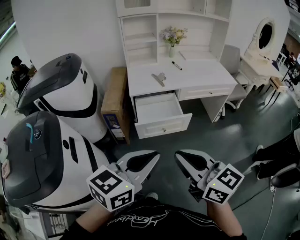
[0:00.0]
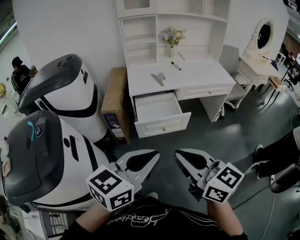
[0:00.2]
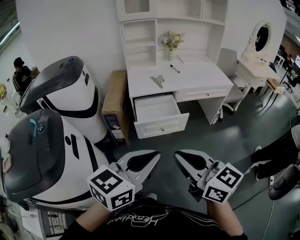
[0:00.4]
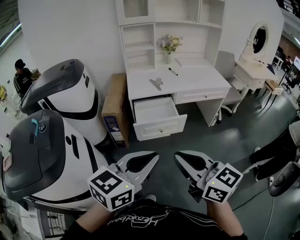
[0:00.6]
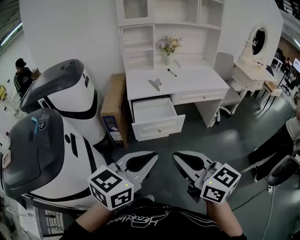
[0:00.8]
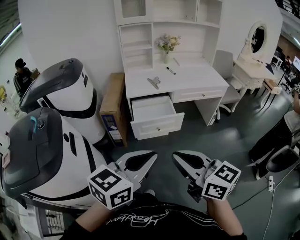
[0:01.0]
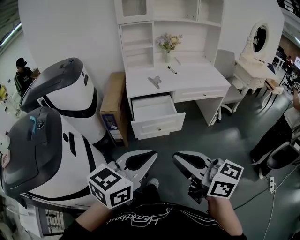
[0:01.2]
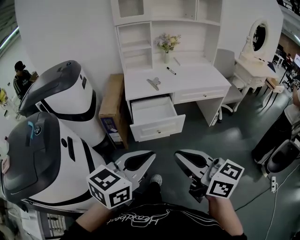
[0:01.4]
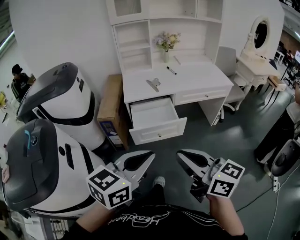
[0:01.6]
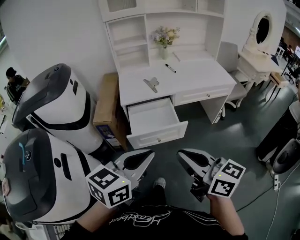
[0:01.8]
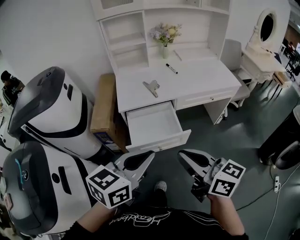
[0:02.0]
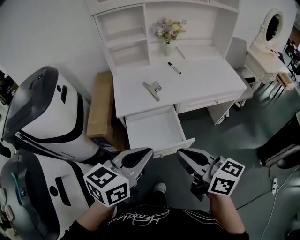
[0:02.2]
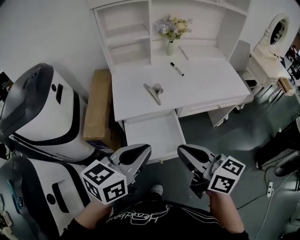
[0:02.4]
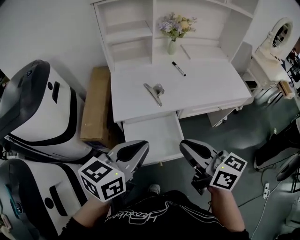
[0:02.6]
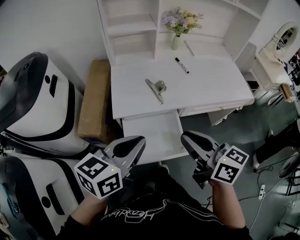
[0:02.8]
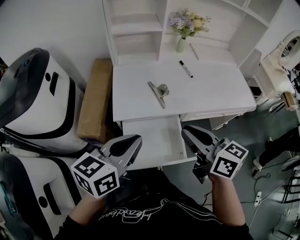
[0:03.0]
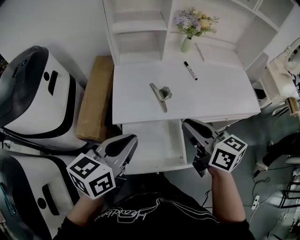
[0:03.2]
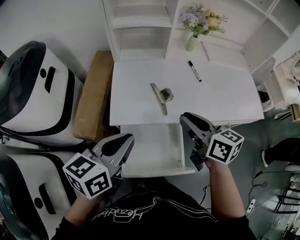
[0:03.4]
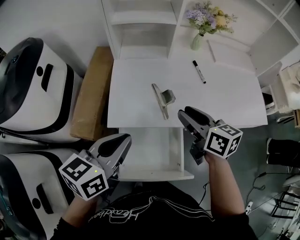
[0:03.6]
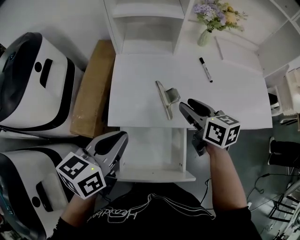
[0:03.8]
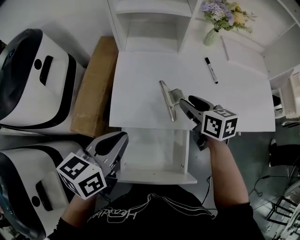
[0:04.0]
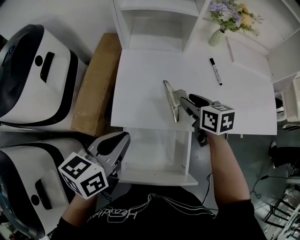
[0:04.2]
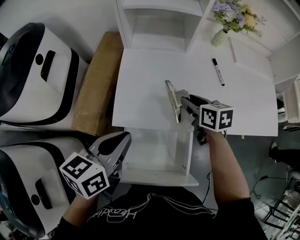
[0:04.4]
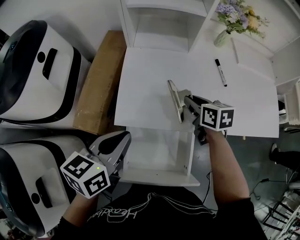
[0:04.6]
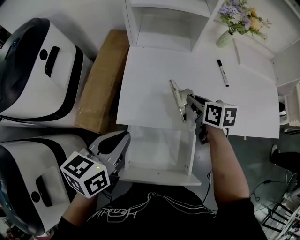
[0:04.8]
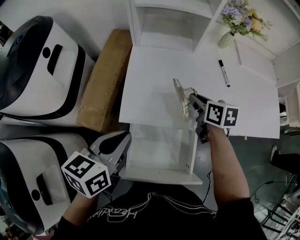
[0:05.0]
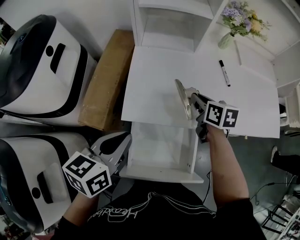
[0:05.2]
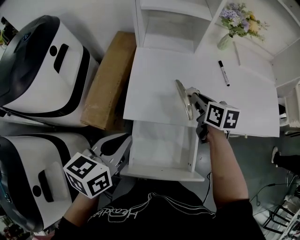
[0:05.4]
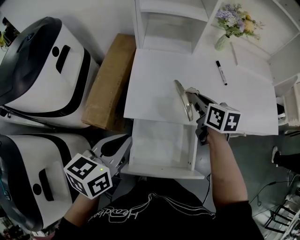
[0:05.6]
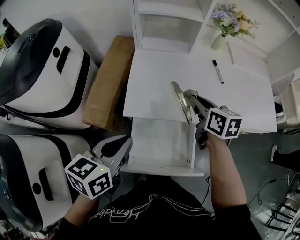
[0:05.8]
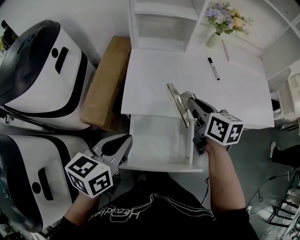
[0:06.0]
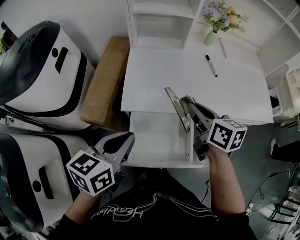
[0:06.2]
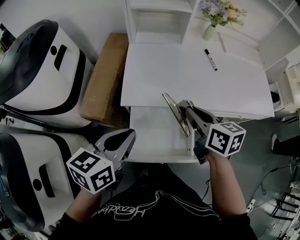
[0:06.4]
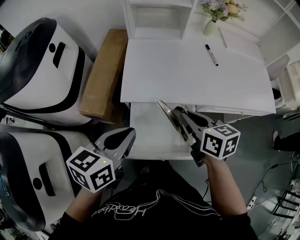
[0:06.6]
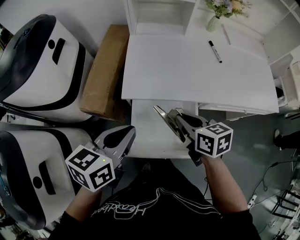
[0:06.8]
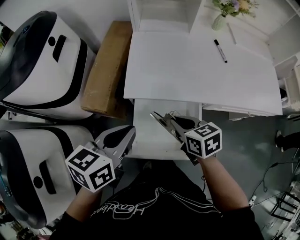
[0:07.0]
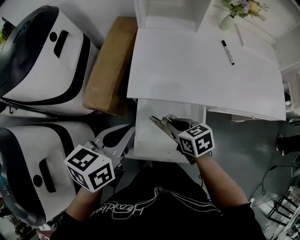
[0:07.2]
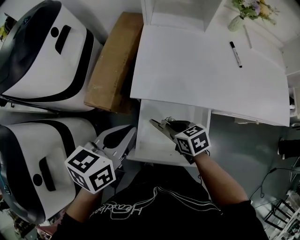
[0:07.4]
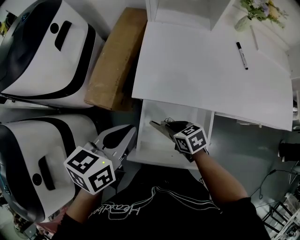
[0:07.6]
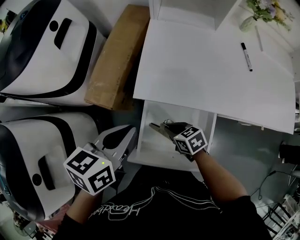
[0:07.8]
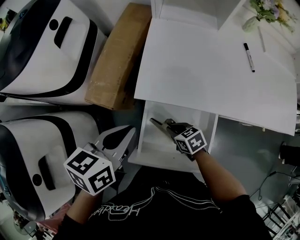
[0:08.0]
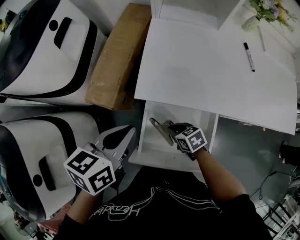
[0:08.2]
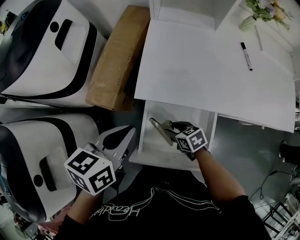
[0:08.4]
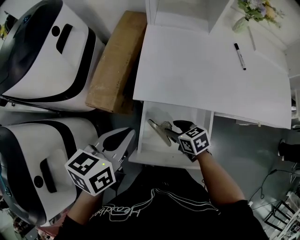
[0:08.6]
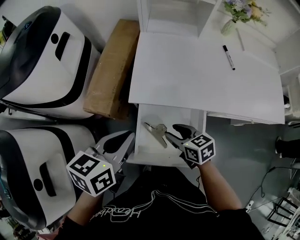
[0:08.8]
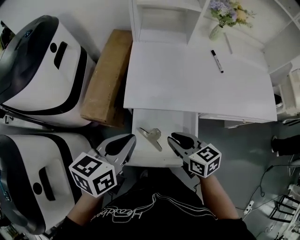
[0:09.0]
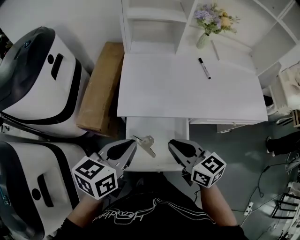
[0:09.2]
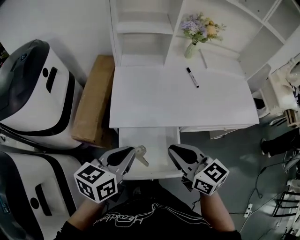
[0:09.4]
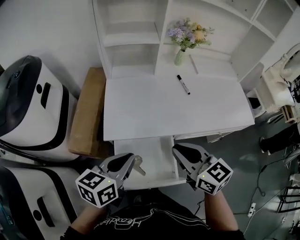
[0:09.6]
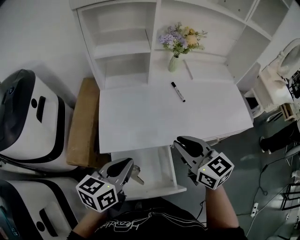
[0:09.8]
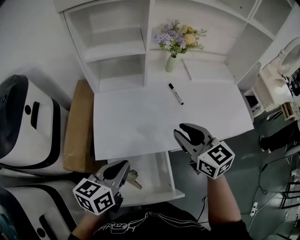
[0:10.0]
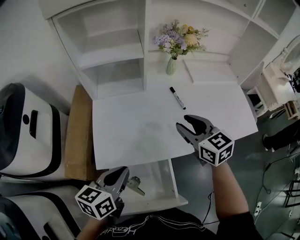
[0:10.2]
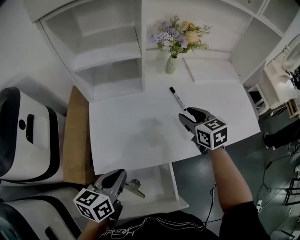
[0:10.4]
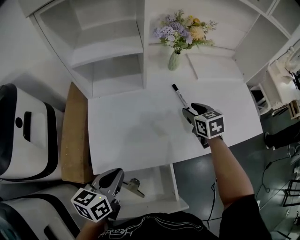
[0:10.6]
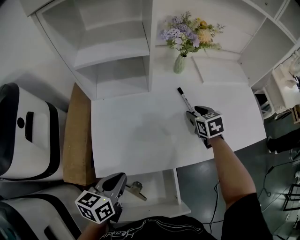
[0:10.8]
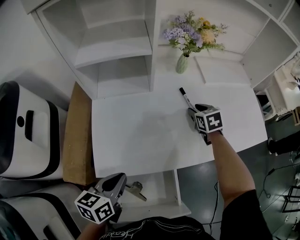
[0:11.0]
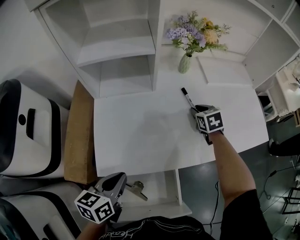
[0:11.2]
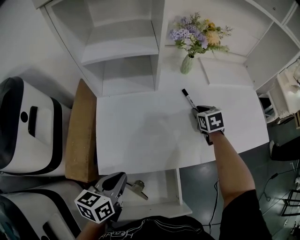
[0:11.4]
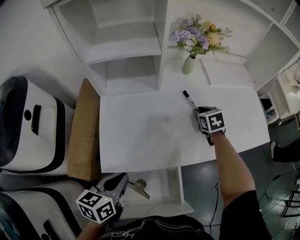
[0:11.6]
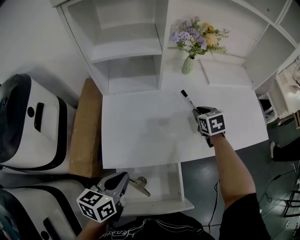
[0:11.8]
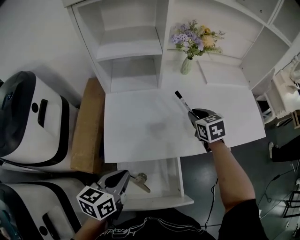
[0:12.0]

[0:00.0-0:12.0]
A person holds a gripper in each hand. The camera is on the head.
0:00.0 to 0:01.6: The left gripper goes backward and returns, roughly 5 cm each way. Meanwhile the right gripper reaches approximately 5 cm backward, then returns.
0:01.6 to 0:03.0: Both grippers travel together forward, some 40 cm.
0:03.0 to 0:04.4: The right gripper moves forward and downward, approximately 35 cm, changes its angle by about 30 degrees, and opens. The left gripper shifts about 15 cm forward and downward.
0:04.4 to 0:06.0: The left gripper goes about 10 cm backward. The right gripper travels upward and backward by roughly 15 cm, and closes.
0:06.0 to 0:07.6: The left gripper is displaced downward by some 5 cm. Meanwhile the right gripper shifts some 30 cm downward, to the left and backward, and turns by roughly 40 degrees.
0:07.6 to 0:09.0: The right gripper is displaced upward by about 15 cm, changes its angle by roughly 30 degrees, and opens and closes again.
0:09.0 to 0:10.4: The right gripper moves forward and to the right, approximately 35 cm, and swivels about 30 degrees; the left gripper shifts approximately 15 cm forward and to the right.
0:10.4 to 0:12.0: The right gripper reaches roughly 10 cm downward, then returns; the left gripper shifts roughly 5 cm backward.

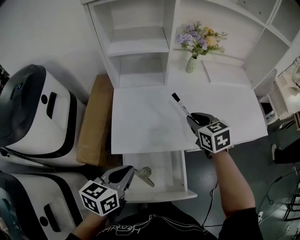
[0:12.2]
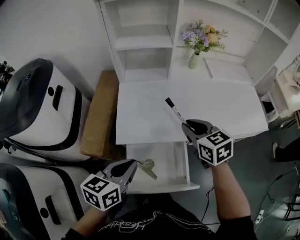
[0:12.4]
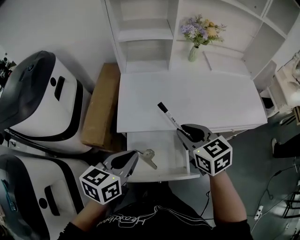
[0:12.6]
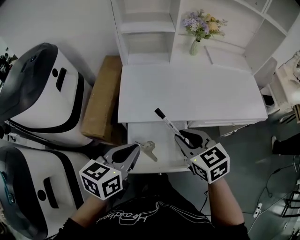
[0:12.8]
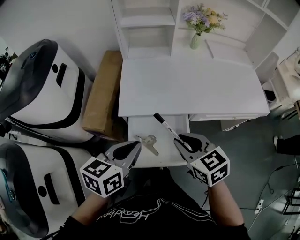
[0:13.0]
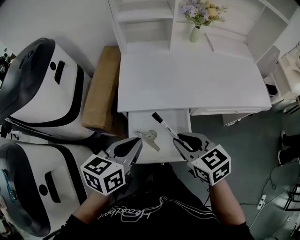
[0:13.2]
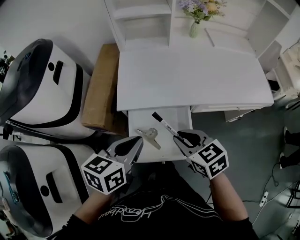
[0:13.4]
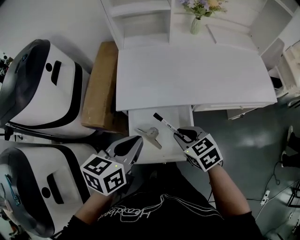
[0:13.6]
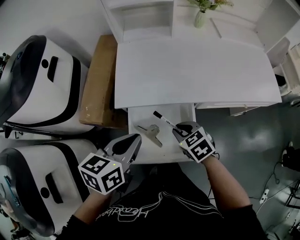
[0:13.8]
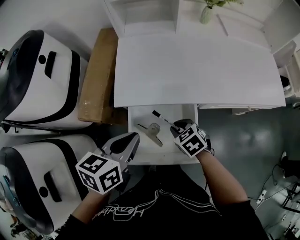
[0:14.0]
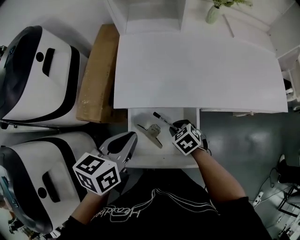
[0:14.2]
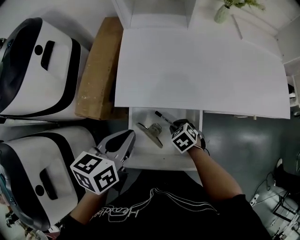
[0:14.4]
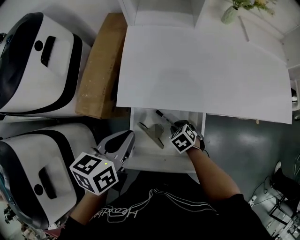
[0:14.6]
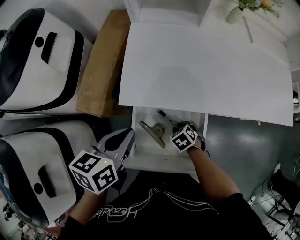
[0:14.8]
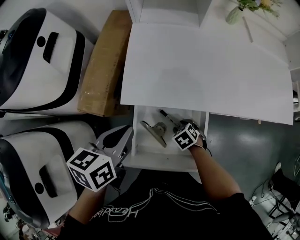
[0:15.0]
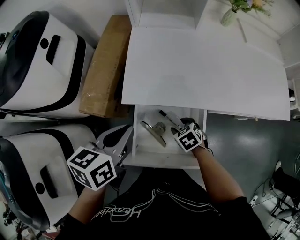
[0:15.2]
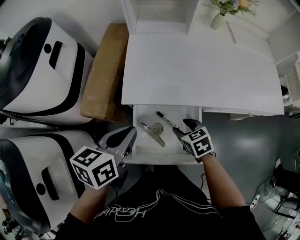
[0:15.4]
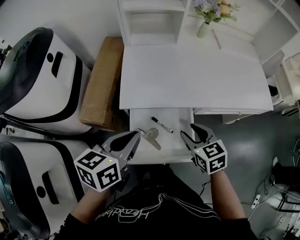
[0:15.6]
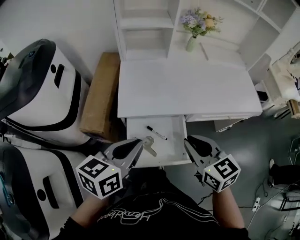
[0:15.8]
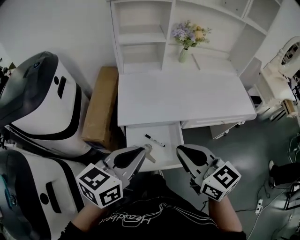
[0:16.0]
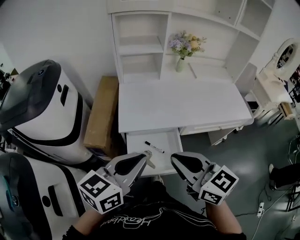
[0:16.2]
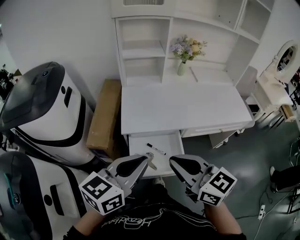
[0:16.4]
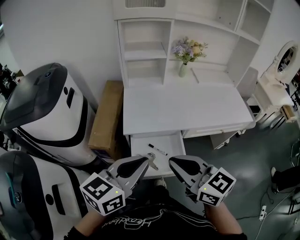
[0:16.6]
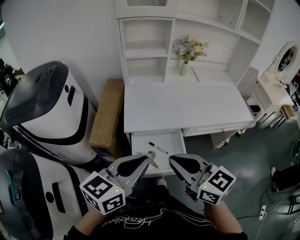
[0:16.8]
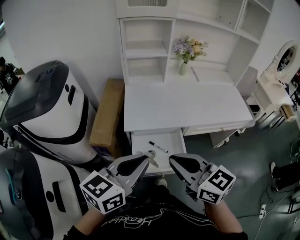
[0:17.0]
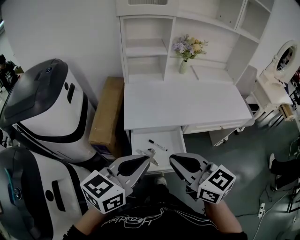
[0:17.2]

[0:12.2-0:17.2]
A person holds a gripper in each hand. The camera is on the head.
0:12.2 to 0:13.8: The right gripper moves backward, downward and to the left, about 30 cm, and turns by about 20 degrees. Meanwhile the left gripper travels backward by approximately 5 cm.
0:13.8 to 0:15.6: The right gripper reaches approximately 20 cm downward, then returns, and opens up. The left gripper reaches roughly 5 cm downward, then returns.
0:15.6 to 0:17.2: Both grippers travel together upward and backward, about 25 cm. The right gripper swivels approximately 30 degrees, and closes its fingers; the left gripper changes its angle by about 20 degrees.

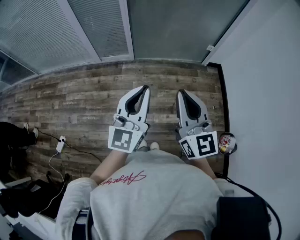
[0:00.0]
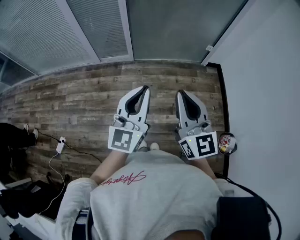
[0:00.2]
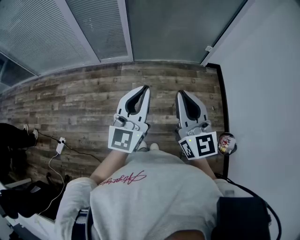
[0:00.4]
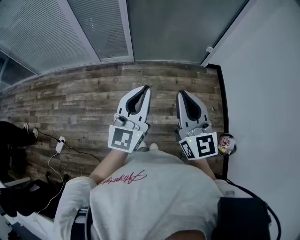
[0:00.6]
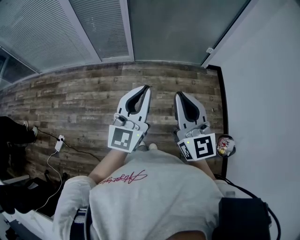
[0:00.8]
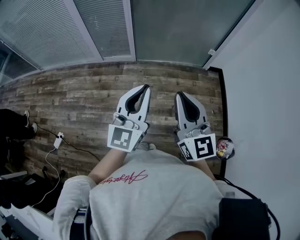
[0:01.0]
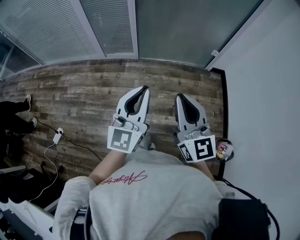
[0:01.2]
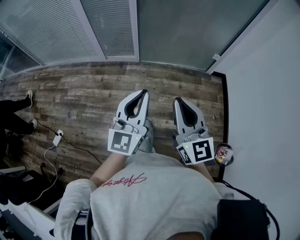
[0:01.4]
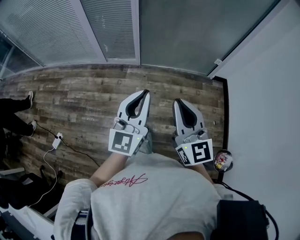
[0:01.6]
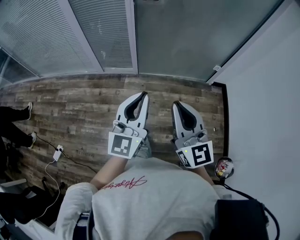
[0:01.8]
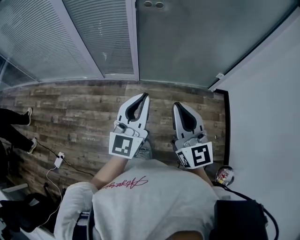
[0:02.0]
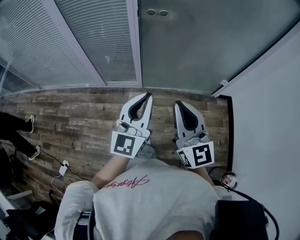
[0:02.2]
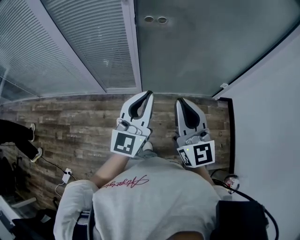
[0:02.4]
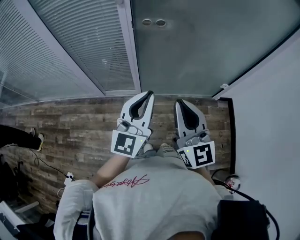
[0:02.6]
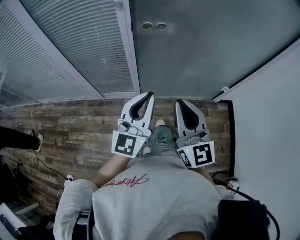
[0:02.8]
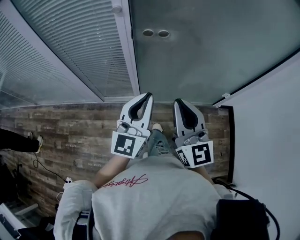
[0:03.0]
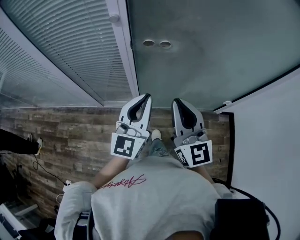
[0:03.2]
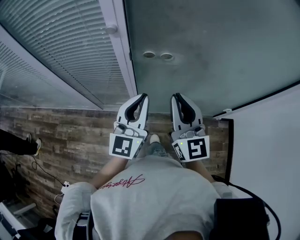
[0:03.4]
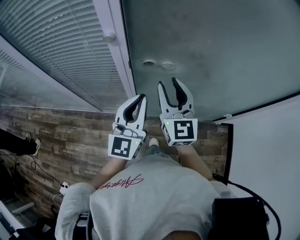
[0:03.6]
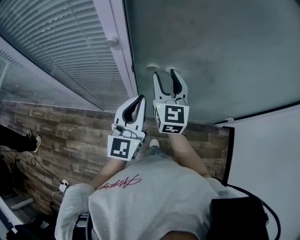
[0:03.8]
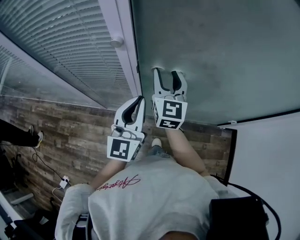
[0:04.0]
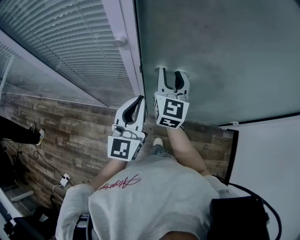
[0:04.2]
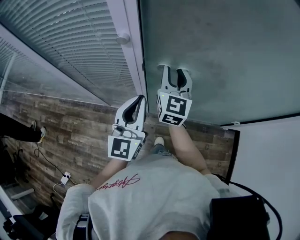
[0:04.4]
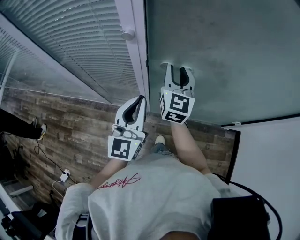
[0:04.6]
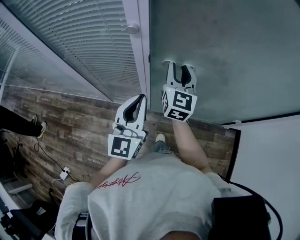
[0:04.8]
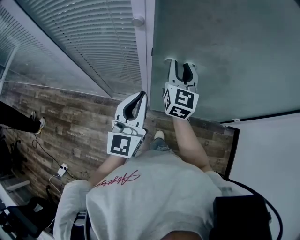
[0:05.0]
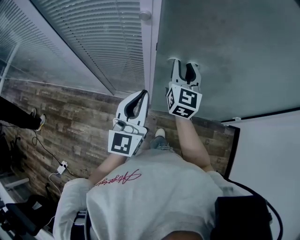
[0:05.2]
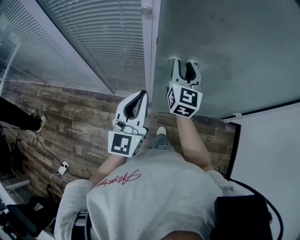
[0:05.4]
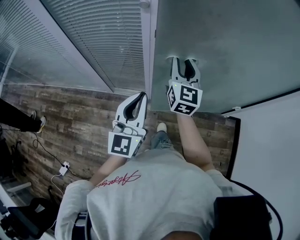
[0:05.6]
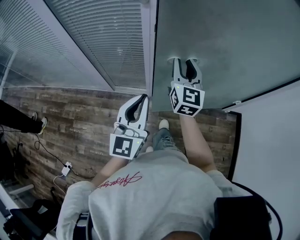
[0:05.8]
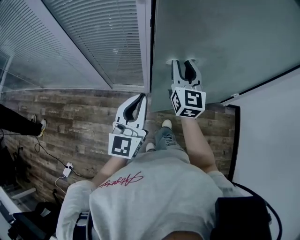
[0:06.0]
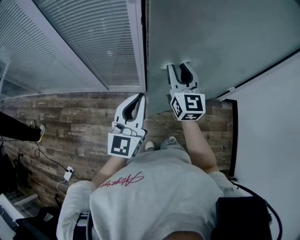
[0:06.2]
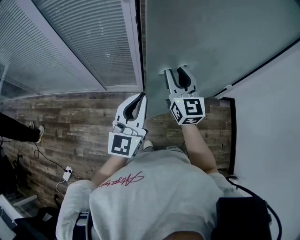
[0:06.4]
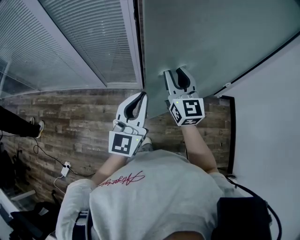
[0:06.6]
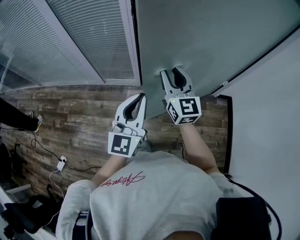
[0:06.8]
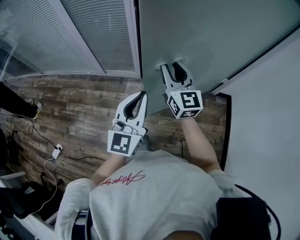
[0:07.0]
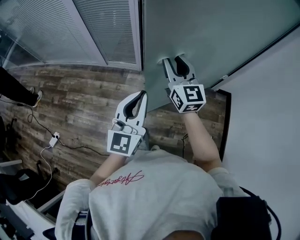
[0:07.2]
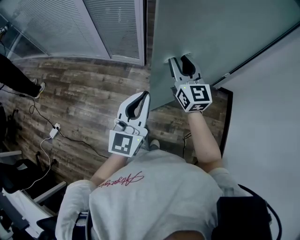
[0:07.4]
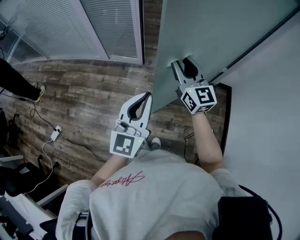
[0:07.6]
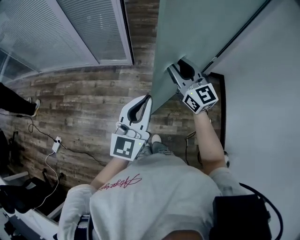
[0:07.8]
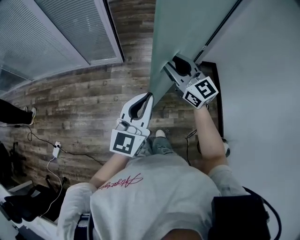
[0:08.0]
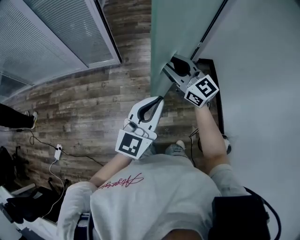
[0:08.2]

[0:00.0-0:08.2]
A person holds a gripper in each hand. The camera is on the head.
0:00.0 to 0:01.6: The left gripper travels forward by roughly 5 cm. The right gripper changes place by about 5 cm.
0:01.6 to 0:03.2: The pair of grippers is taken forward, approximately 50 cm.
0:03.2 to 0:05.0: The left gripper heads to the left, covering approximately 5 cm; the right gripper travels forward by about 20 cm, and opens up.
0:05.0 to 0:06.6: The grippers both shift backward by some 25 cm.
0:06.6 to 0:08.2: Both grippers move backward and to the right, some 35 cm. The right gripper changes its angle by roughly 20 degrees.
